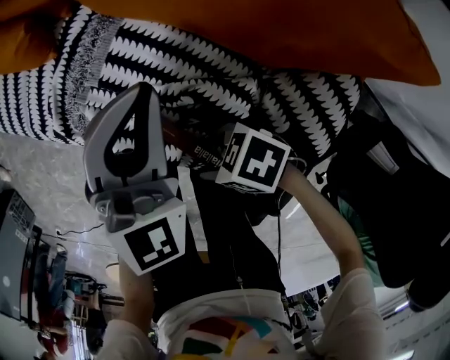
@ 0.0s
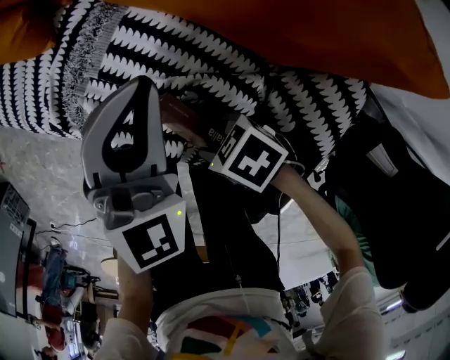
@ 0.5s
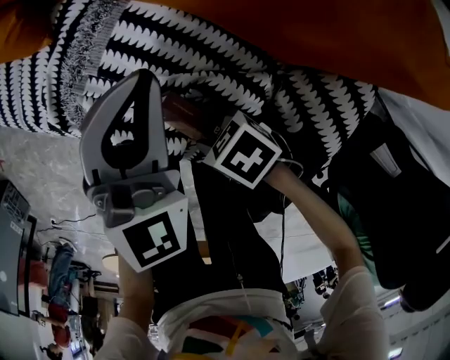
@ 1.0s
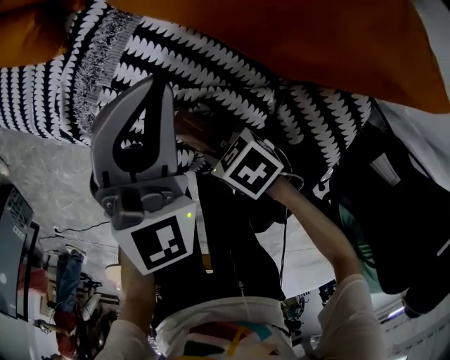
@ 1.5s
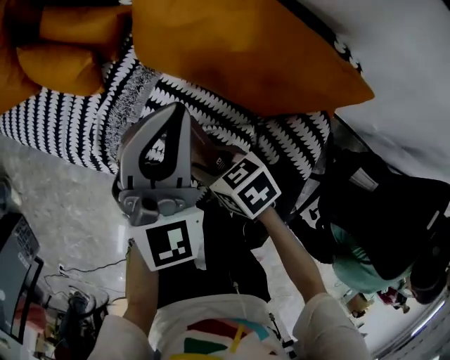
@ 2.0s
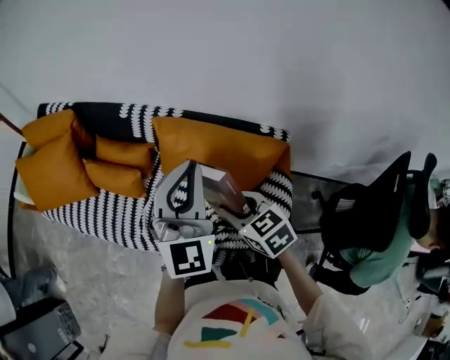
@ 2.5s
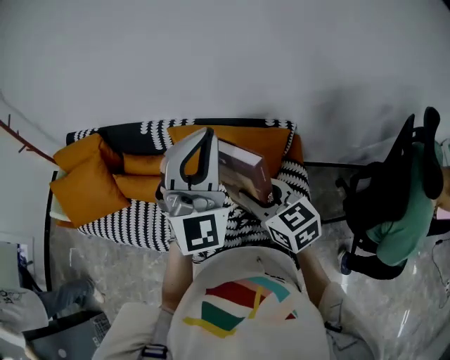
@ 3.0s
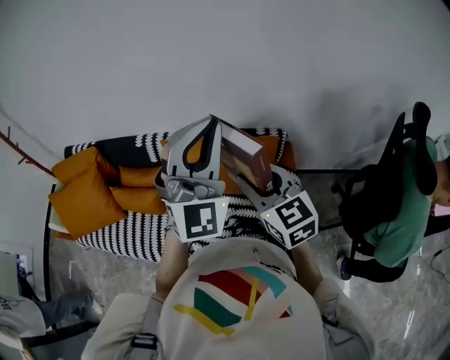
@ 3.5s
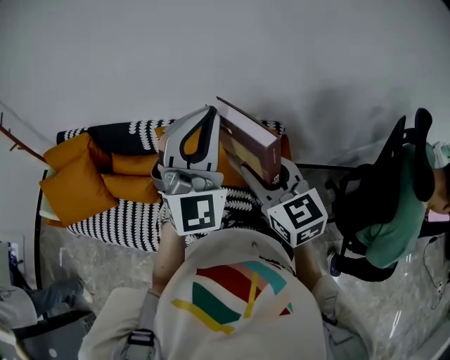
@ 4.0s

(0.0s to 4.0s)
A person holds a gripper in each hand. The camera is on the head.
0.0s - 2.0s: The right gripper shifts by approximately 15 cm, swivels roughly 40 degrees, and closes up. The left gripper goes roughly 10 cm upward.
2.0s - 4.0s: Both grippers travel together upward, approximately 40 cm. The left gripper rotates about 40 degrees; the right gripper angles its fingers upward, by some 40 degrees.

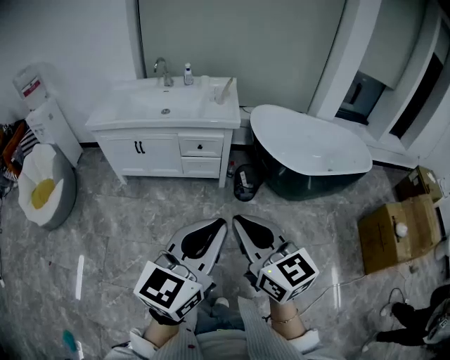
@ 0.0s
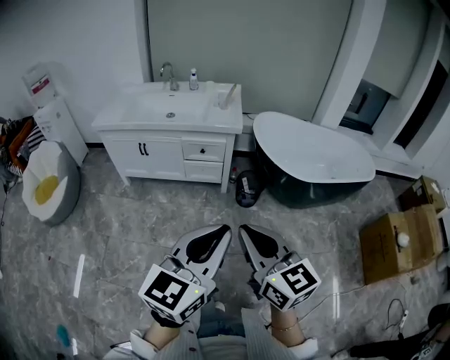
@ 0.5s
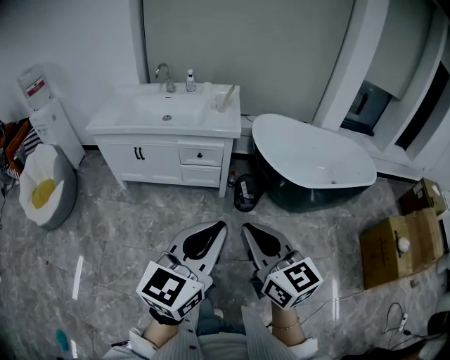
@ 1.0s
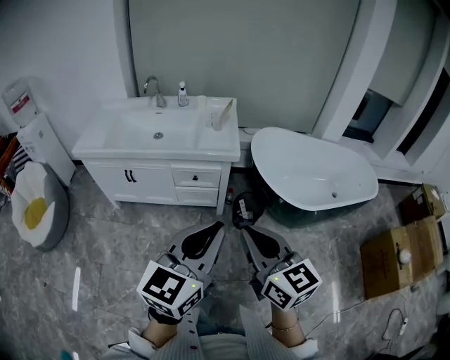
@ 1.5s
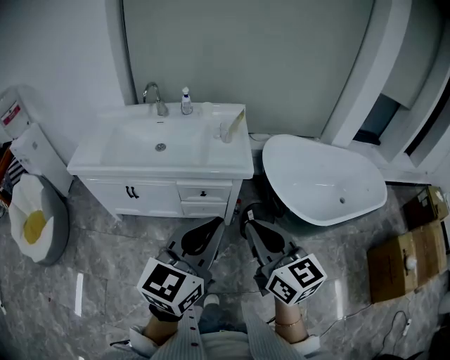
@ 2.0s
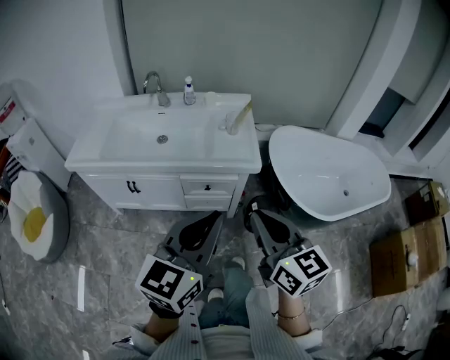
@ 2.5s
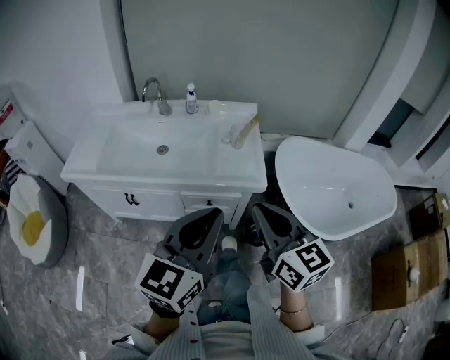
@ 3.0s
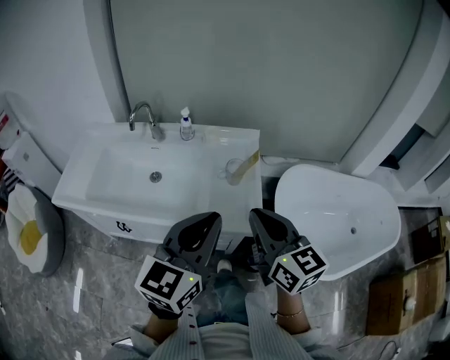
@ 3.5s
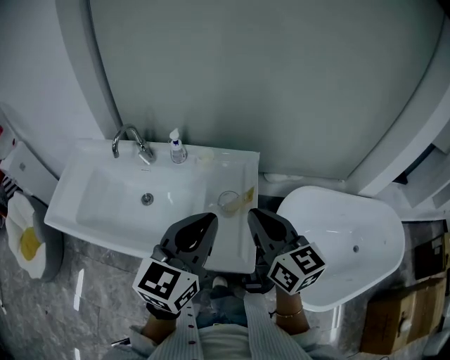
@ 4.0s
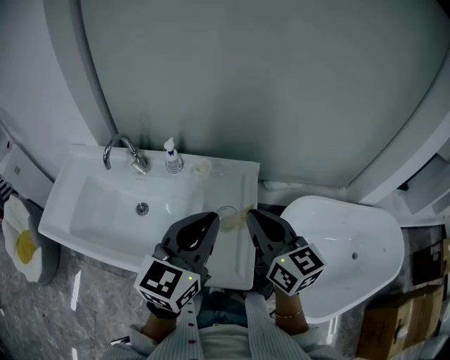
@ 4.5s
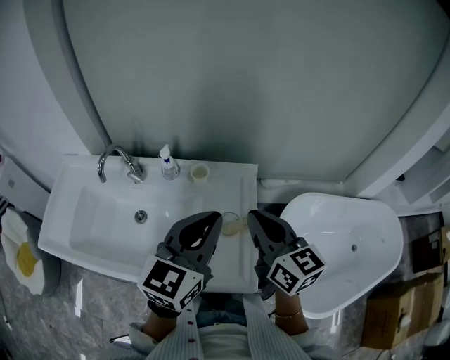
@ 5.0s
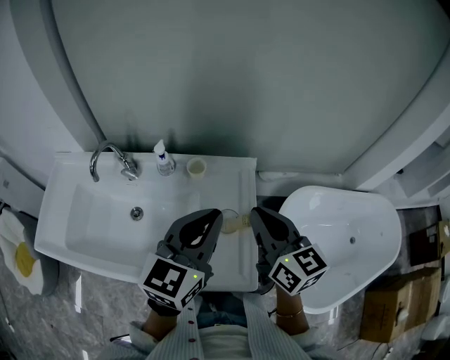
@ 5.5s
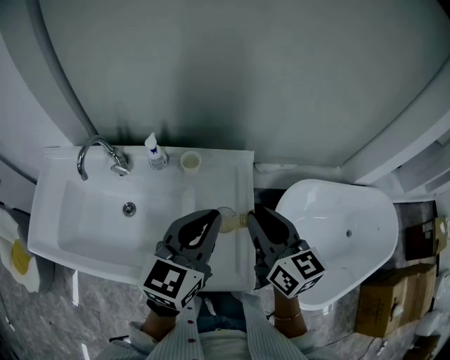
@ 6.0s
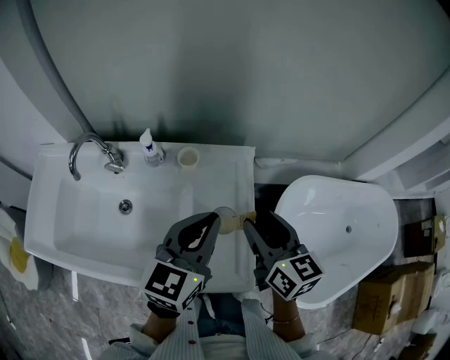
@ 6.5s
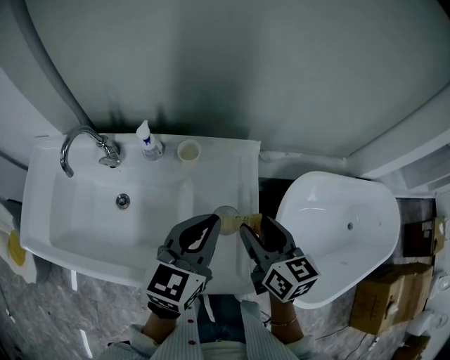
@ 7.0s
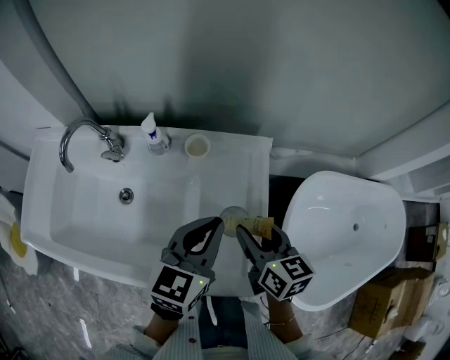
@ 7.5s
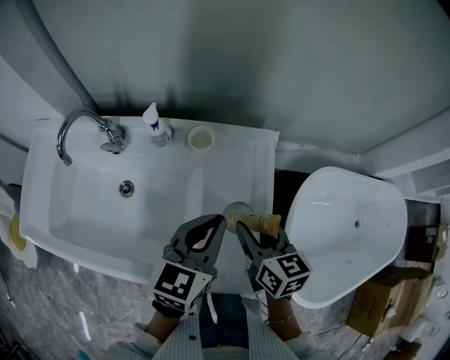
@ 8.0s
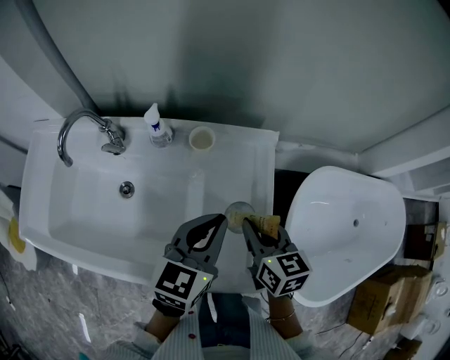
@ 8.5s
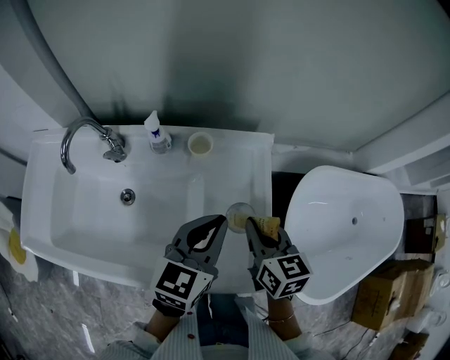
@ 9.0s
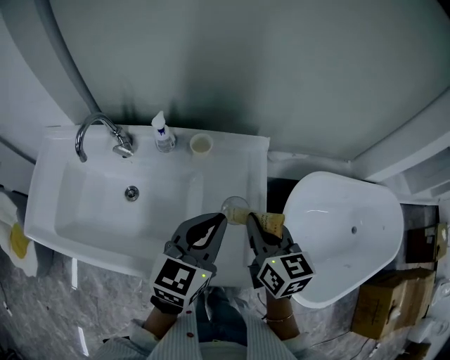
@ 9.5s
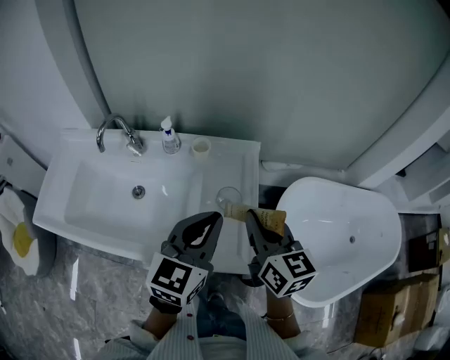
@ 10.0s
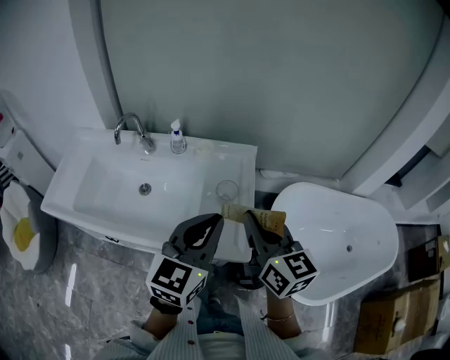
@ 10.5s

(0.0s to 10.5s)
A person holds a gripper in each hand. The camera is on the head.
0.0s - 2.0s: Both grippers travel together forward, about 30 cm.
2.0s - 4.0s: Both grippers are carried forward, about 40 cm.
4.0s - 6.5s: The grippers both shift forward and downward by approximately 15 cm. The right gripper opens up.
6.5s - 8.5s: Both grippers travel together downward, about 10 cm. The right gripper closes.
8.5s - 10.5s: The right gripper goes about 25 cm upward and backward, and swivels some 30 degrees; the left gripper heads backward and upward, covering approximately 20 cm.

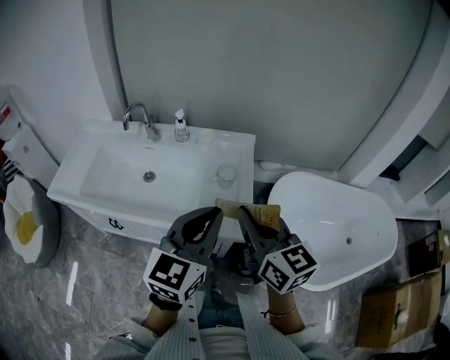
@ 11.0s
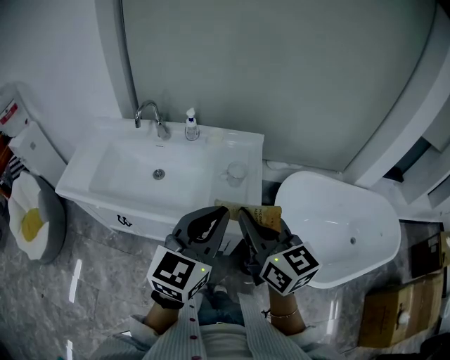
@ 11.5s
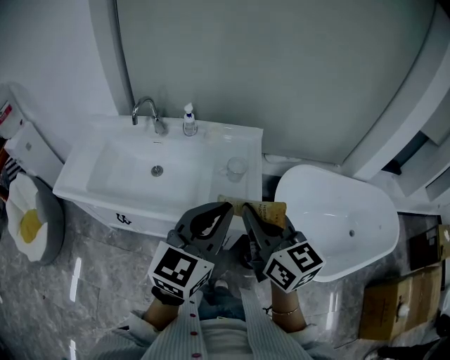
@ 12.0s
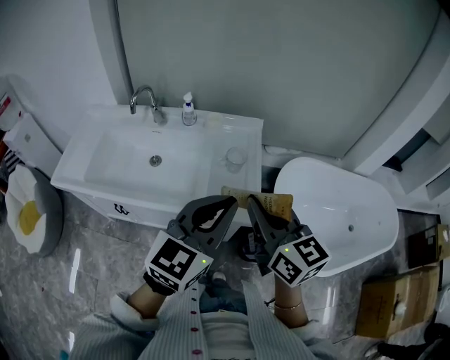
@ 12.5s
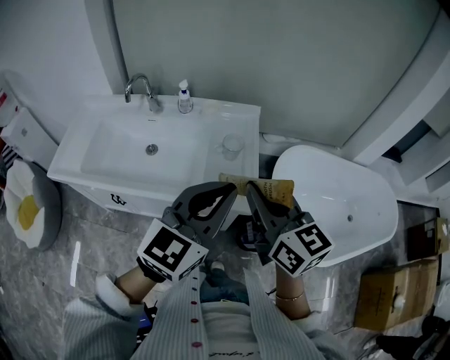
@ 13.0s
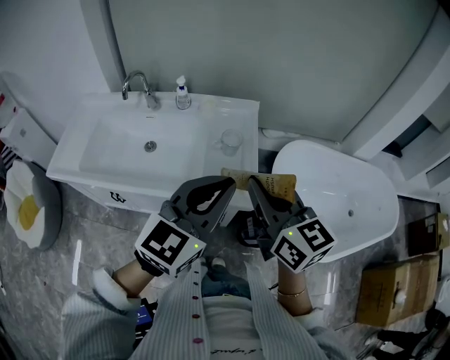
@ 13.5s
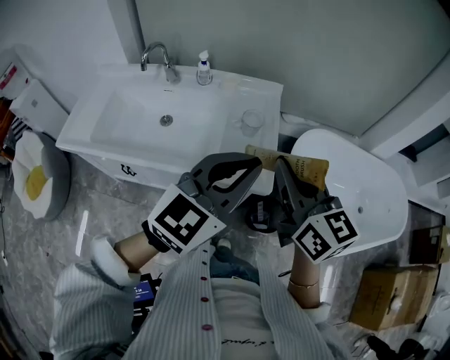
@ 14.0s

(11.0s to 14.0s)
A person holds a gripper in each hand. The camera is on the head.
11.0s - 14.0s: The grippers move only a little.

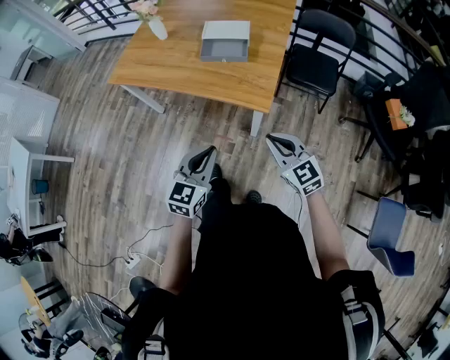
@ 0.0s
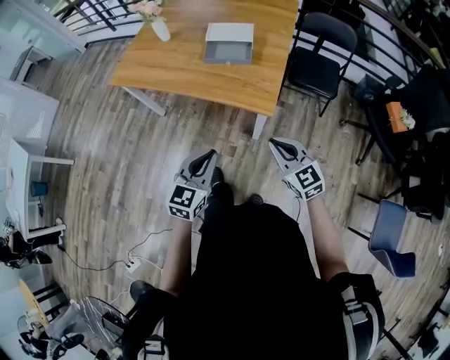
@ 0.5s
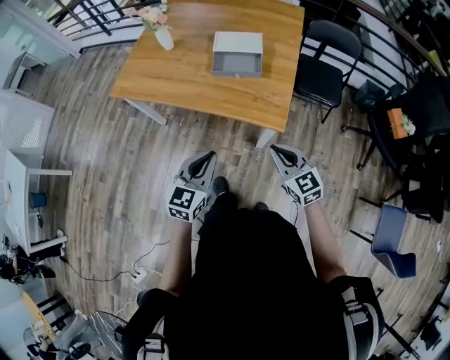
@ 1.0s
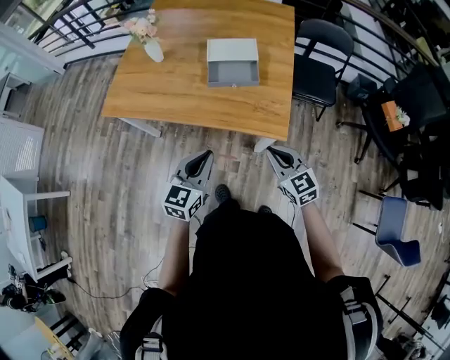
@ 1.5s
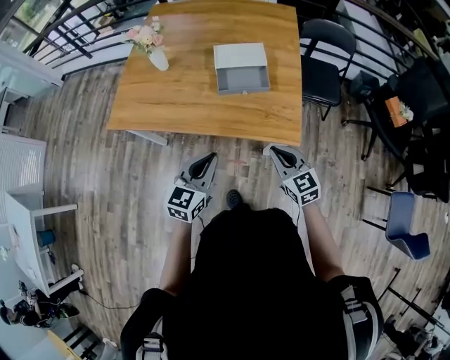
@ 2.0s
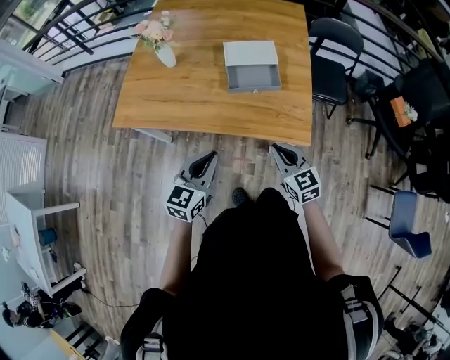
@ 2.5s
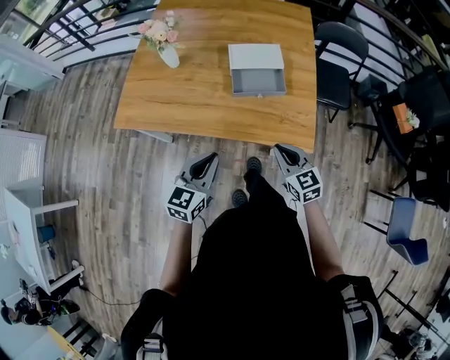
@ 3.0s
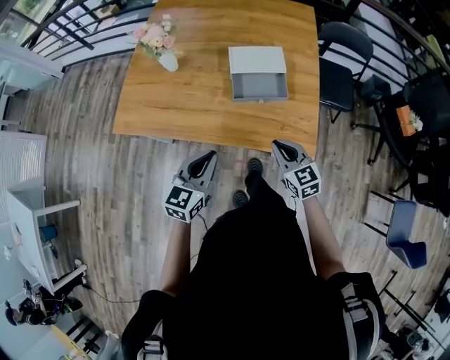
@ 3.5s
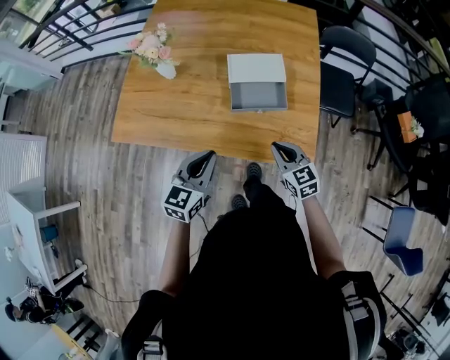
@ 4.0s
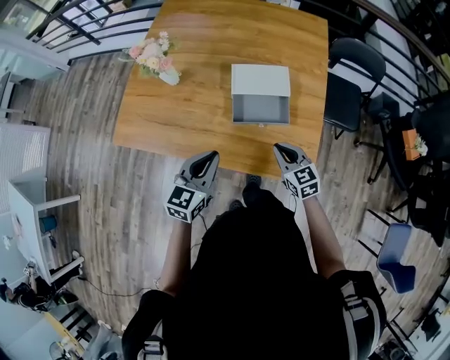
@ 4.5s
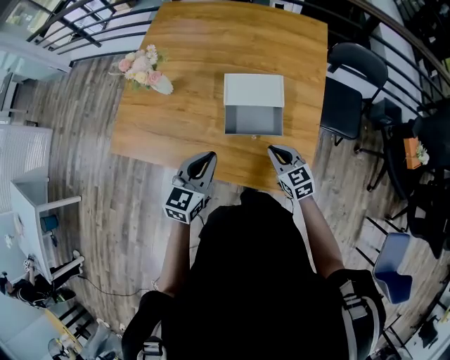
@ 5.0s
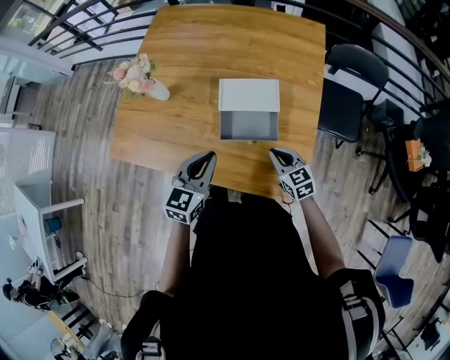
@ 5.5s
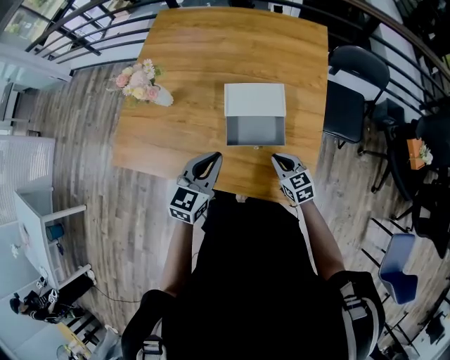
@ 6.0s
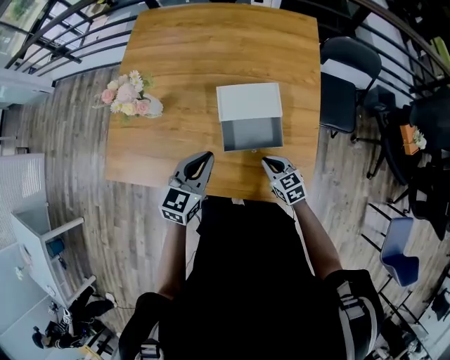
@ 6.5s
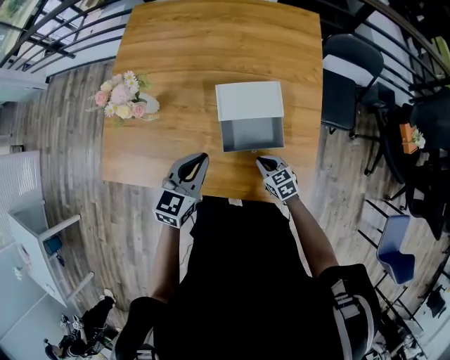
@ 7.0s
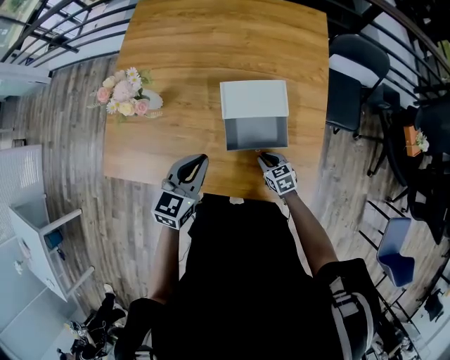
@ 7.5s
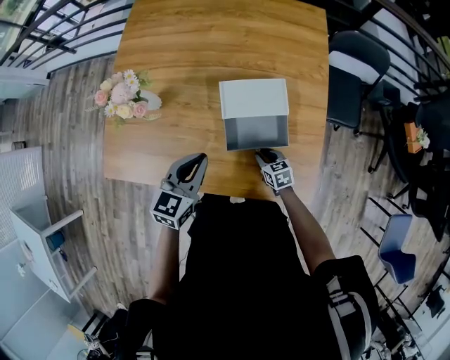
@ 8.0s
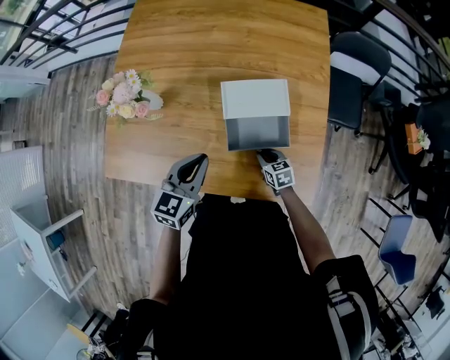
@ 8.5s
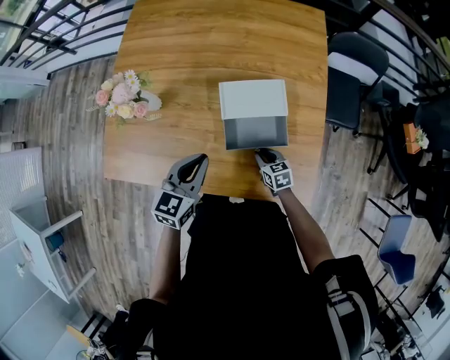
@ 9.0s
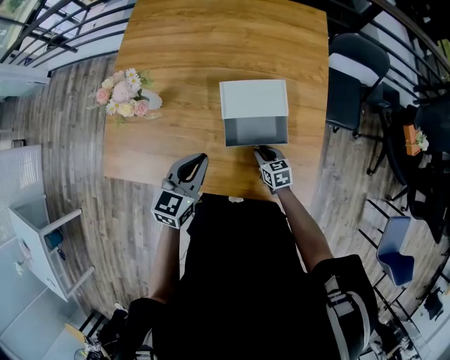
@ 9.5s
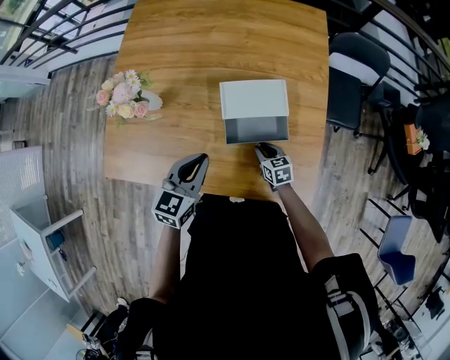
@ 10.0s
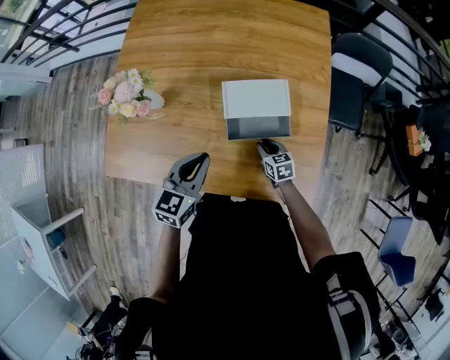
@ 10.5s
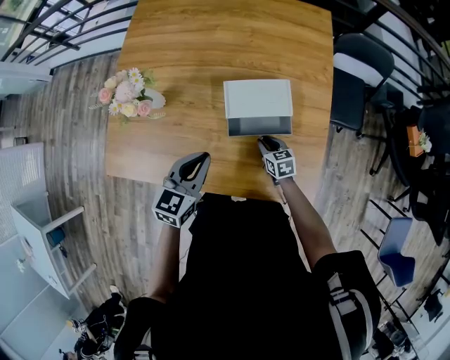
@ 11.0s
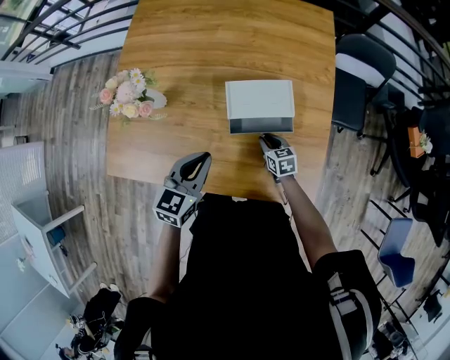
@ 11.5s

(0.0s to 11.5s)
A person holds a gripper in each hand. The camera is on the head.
0.0s - 2.0s: The grippers both shift forward and to the left by about 30 cm.
2.0s - 4.0s: Both grippers move forward, about 15 cm.
4.0s - 6.0s: The left gripper shifts some 20 cm forward and to the right. Meanwhile the right gripper heads forward, downward and to the right, covering about 15 cm.
6.0s - 7.5s: The left gripper goes roughly 10 cm forward and to the left. The right gripper travels downward and to the left by roughly 15 cm.
7.5s - 9.5s: There are only small adjustments of the grippers.
9.5s - 11.5s: The right gripper goes approximately 5 cm forward.
